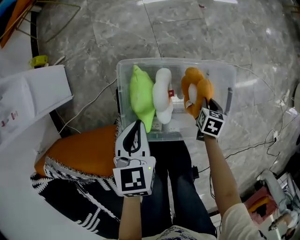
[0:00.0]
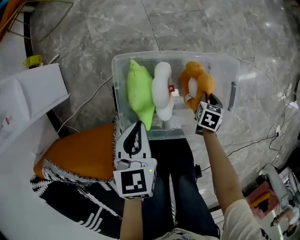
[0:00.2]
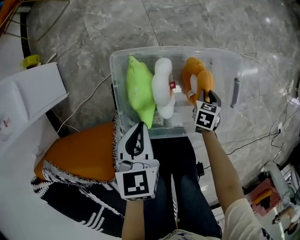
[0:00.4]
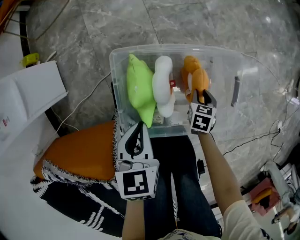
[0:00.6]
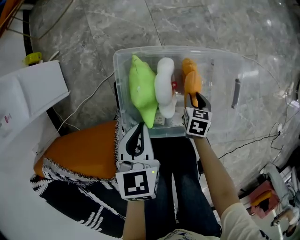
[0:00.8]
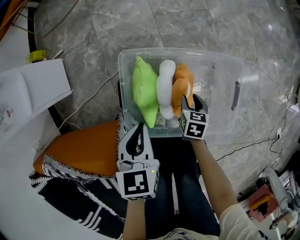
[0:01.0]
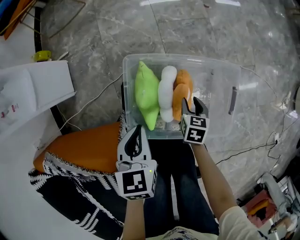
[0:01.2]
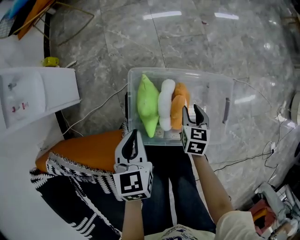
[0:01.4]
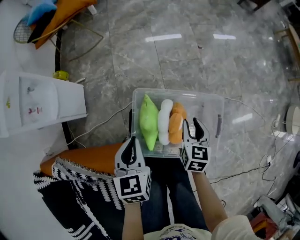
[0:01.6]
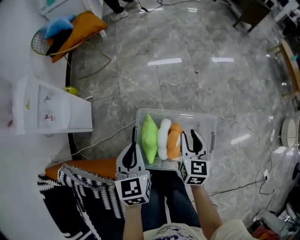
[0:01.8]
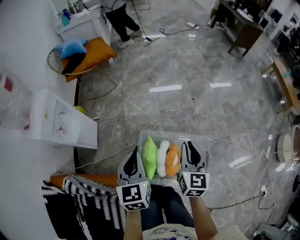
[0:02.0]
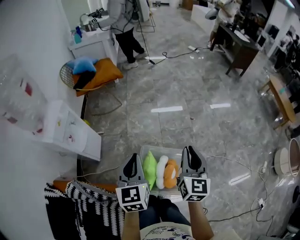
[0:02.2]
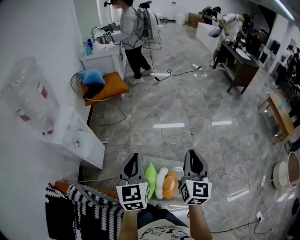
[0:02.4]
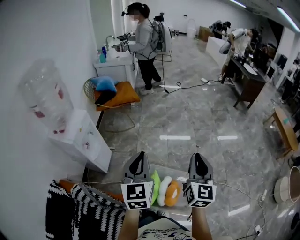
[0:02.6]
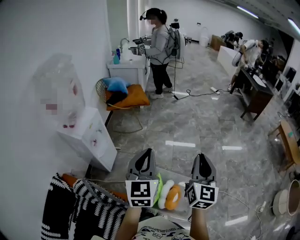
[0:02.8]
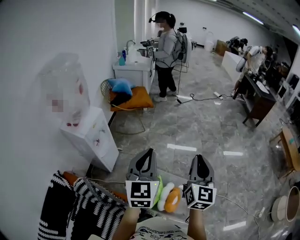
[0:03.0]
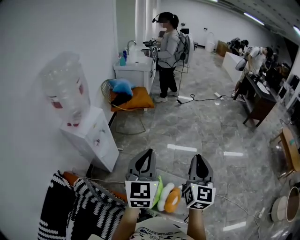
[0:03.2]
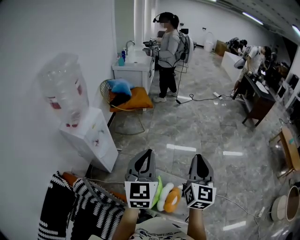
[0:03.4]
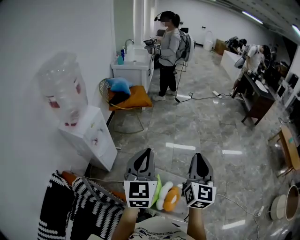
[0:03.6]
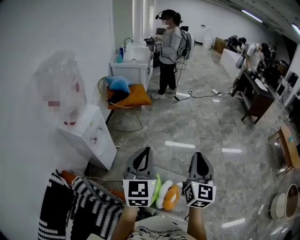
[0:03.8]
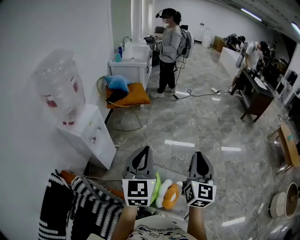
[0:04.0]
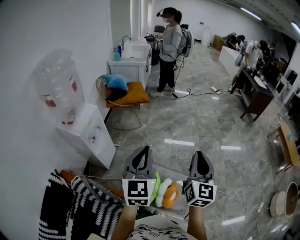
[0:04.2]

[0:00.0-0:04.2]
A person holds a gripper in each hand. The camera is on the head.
0:00.0 to 0:01.4: The left gripper ends up approximately 5 cm from where it was. The right gripper travels to the left and upward by some 15 cm, and changes its angle by about 20 degrees.
0:01.4 to 0:02.8: The two grippers go approximately 60 cm upward. The right gripper tilts its fingers about 50 degrees upward, and closes up, while the left gripper points its fingers some 40 degrees further upward.
0:02.8 to 0:04.2: The grippers stay close to where they were, moving slightly.

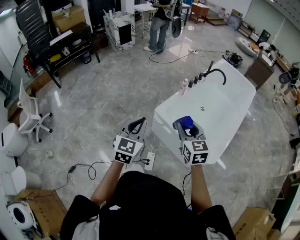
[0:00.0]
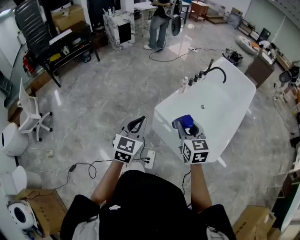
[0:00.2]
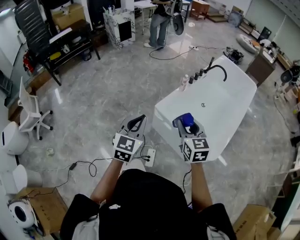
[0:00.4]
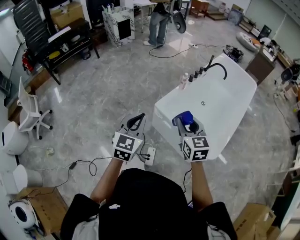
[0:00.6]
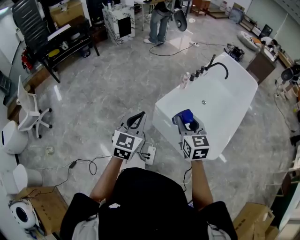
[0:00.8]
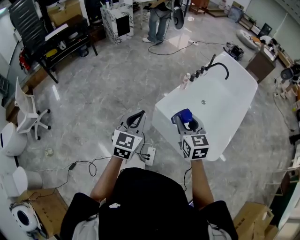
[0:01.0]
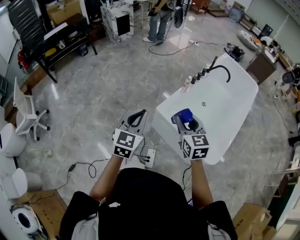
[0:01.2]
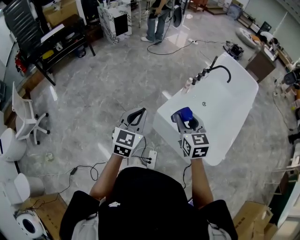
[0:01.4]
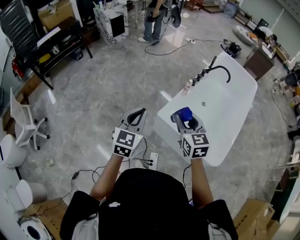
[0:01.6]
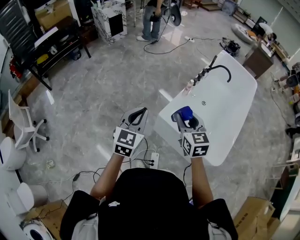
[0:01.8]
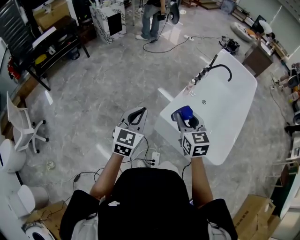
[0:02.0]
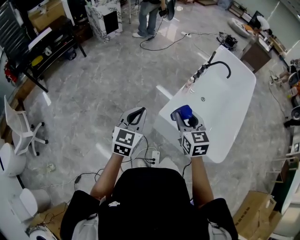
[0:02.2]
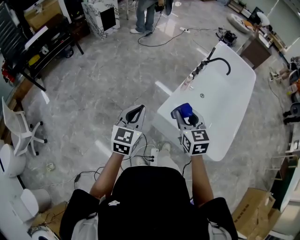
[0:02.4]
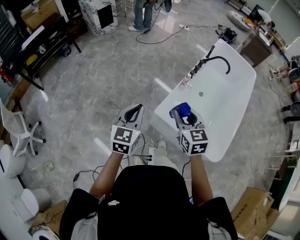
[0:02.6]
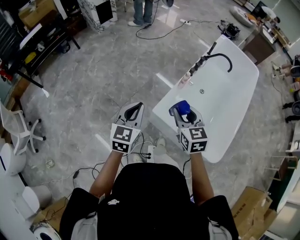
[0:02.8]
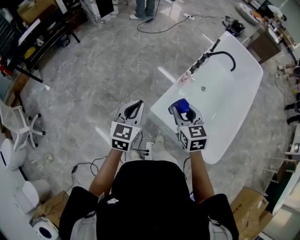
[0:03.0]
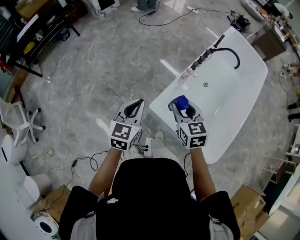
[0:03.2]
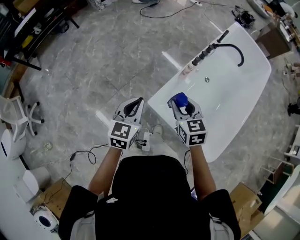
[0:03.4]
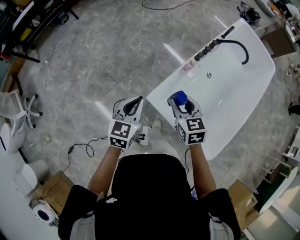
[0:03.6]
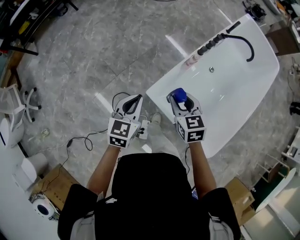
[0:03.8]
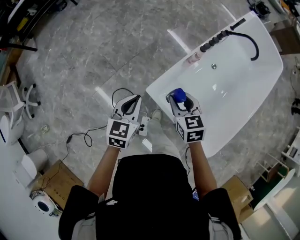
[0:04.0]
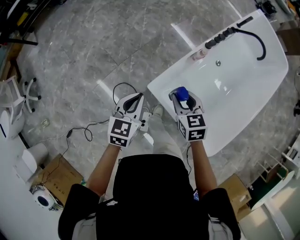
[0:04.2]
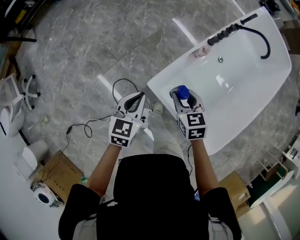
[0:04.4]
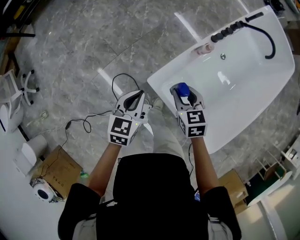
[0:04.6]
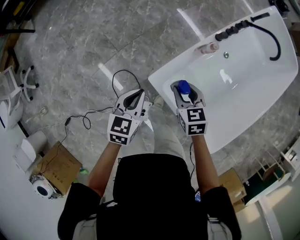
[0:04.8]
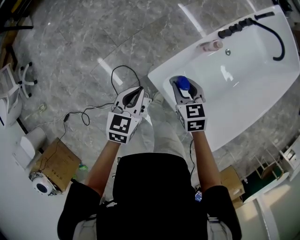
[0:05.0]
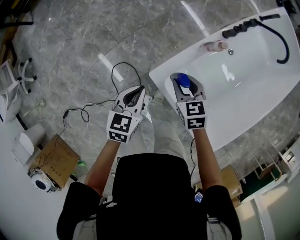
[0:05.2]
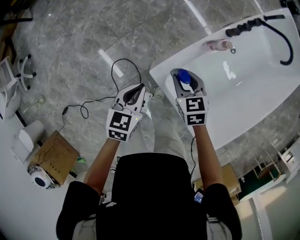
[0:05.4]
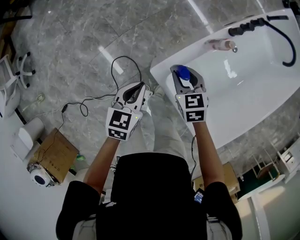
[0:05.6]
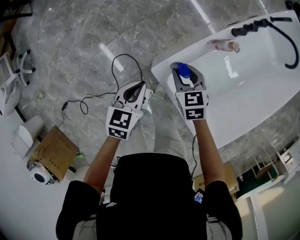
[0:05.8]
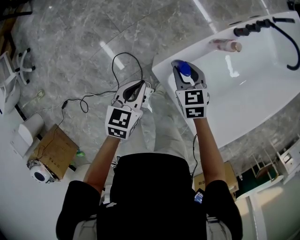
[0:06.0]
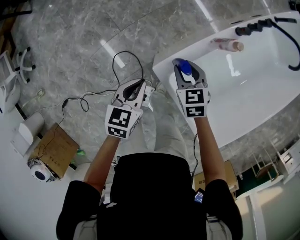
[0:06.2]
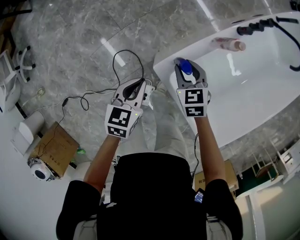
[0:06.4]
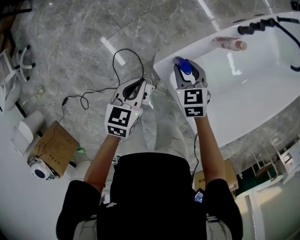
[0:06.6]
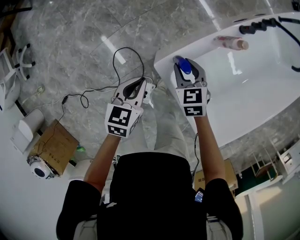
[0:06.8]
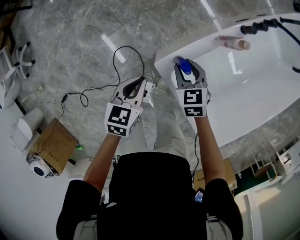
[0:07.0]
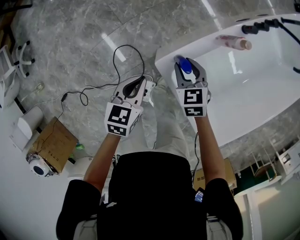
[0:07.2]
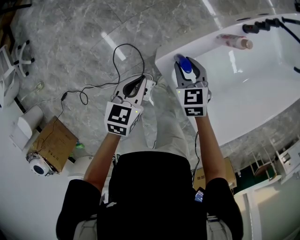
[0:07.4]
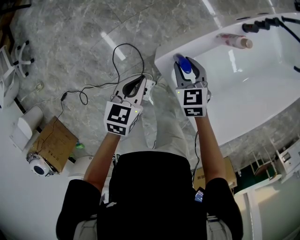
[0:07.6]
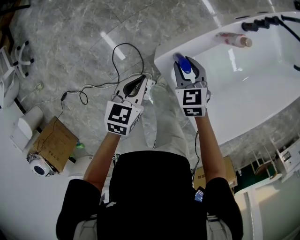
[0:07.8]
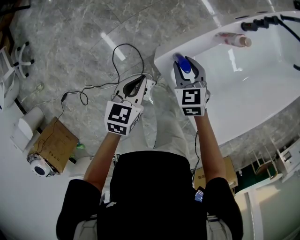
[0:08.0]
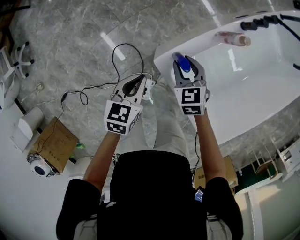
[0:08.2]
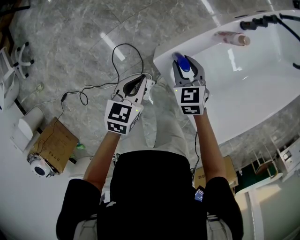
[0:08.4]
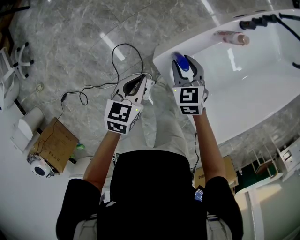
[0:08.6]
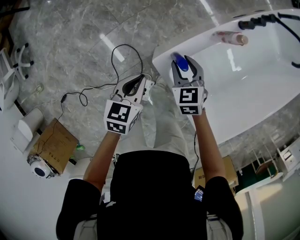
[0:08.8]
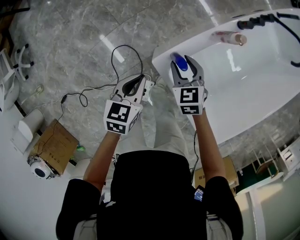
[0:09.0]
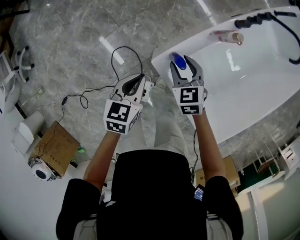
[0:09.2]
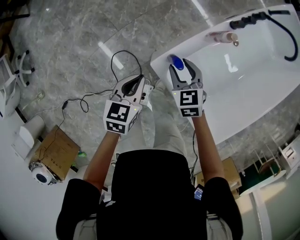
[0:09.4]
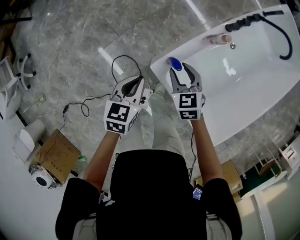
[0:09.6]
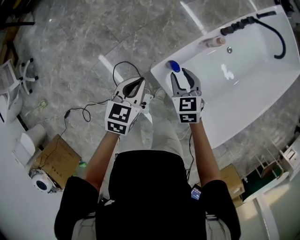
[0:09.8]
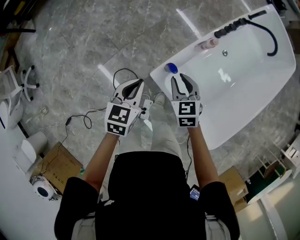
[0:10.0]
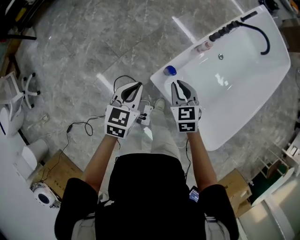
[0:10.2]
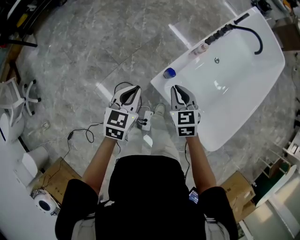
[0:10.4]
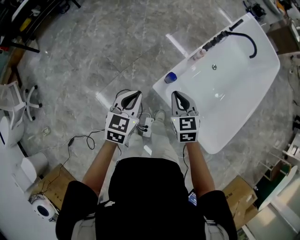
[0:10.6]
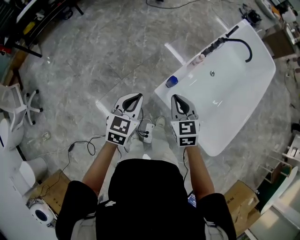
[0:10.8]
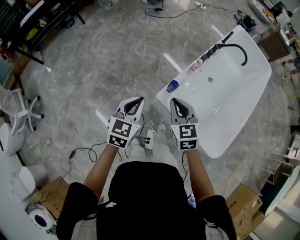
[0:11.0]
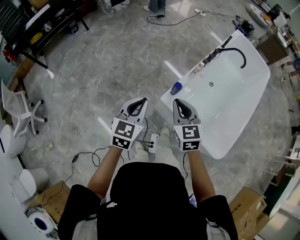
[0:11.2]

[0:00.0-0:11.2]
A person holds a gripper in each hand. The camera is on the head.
0:00.0 to 0:01.6: Both grippers travel together forward and to the left, approximately 15 cm.
0:01.6 to 0:03.2: The grippers both shift forward and downward by roughly 20 cm.
0:03.2 to 0:04.8: The two grippers go about 20 cm downward. The left gripper rotates roughly 20 degrees.
0:04.8 to 0:06.4: The left gripper shifts approximately 10 cm downward. The right gripper is displaced downward and forward by approximately 10 cm.
0:06.4 to 0:08.0: There are only small adjustments of the grippers.
0:08.0 to 0:09.6: Both grippers travel together upward, roughly 5 cm.
0:09.6 to 0:11.2: Both grippers move upward and backward, roughly 30 cm. The right gripper changes its angle by about 20 degrees, and closes its fingers. The left gripper changes its angle by approximately 30 degrees.

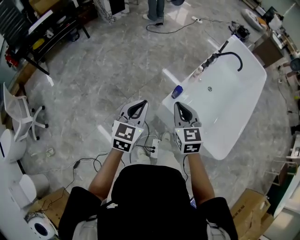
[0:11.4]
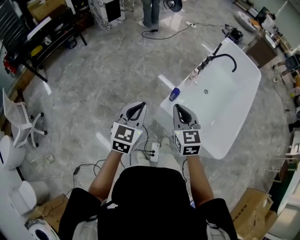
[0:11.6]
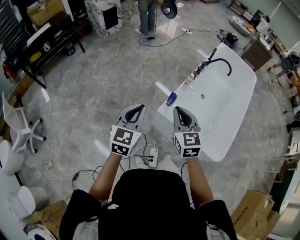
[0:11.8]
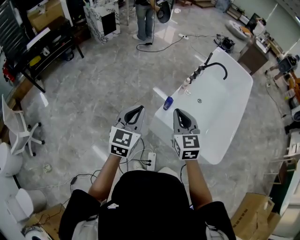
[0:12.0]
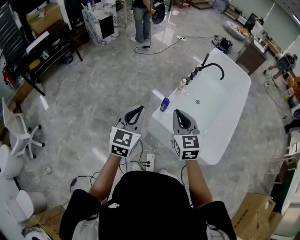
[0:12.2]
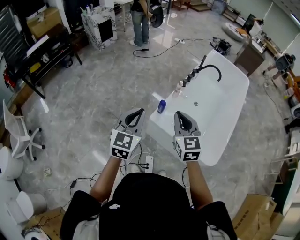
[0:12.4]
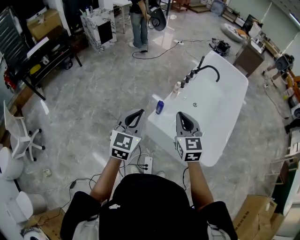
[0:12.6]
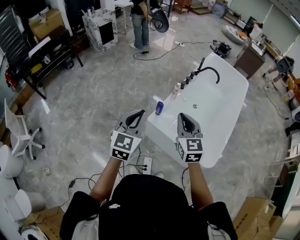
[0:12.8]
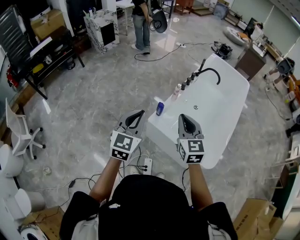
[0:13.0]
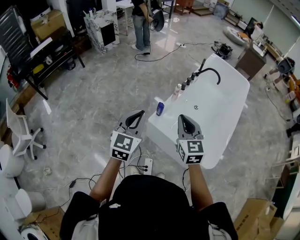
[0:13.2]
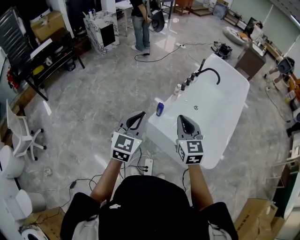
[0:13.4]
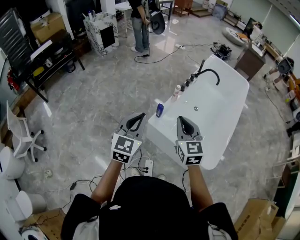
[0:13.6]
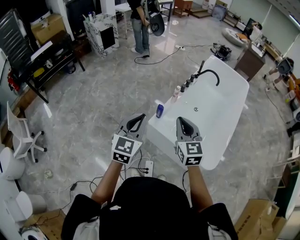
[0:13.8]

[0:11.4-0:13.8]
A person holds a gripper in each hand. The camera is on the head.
0:11.4 to 0:12.6: The left gripper is displaced upward and to the right by roughly 15 cm. The right gripper is displaced to the right and upward by approximately 15 cm.
0:12.6 to 0:13.8: The grippers make only small movements.

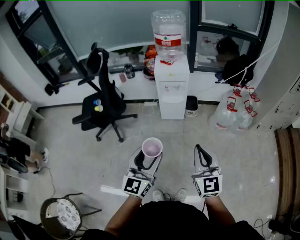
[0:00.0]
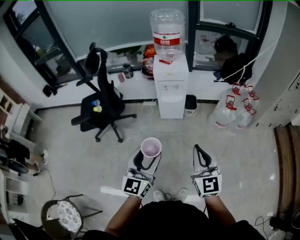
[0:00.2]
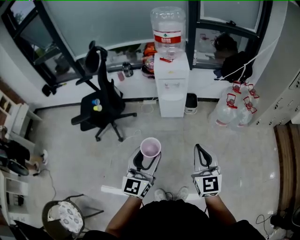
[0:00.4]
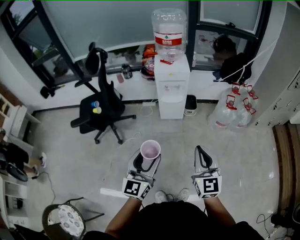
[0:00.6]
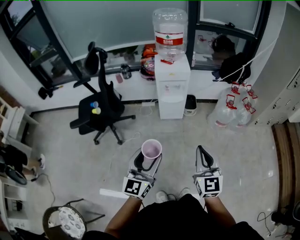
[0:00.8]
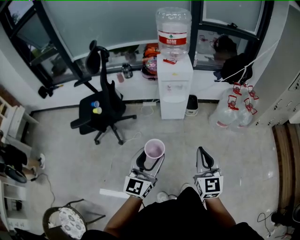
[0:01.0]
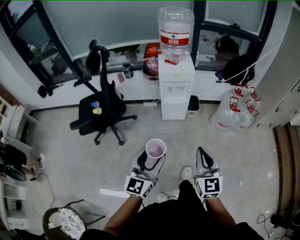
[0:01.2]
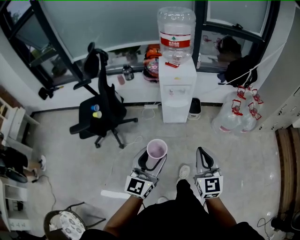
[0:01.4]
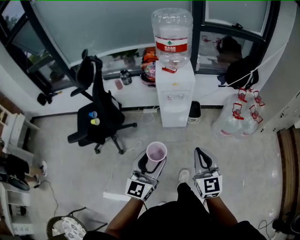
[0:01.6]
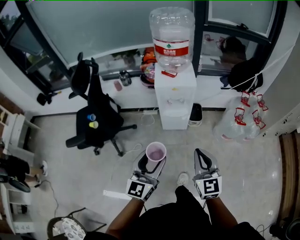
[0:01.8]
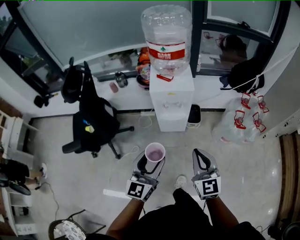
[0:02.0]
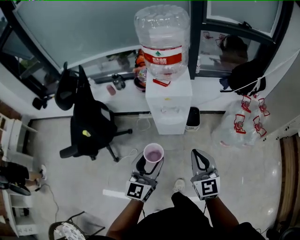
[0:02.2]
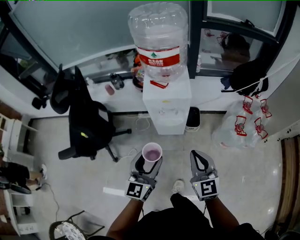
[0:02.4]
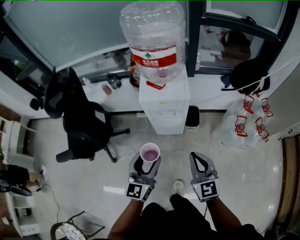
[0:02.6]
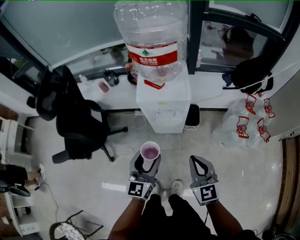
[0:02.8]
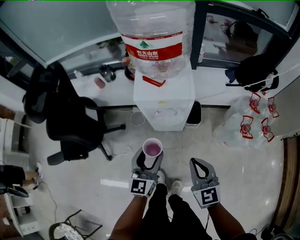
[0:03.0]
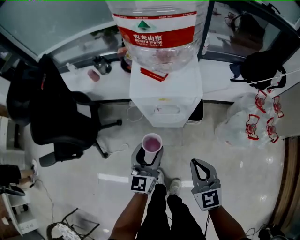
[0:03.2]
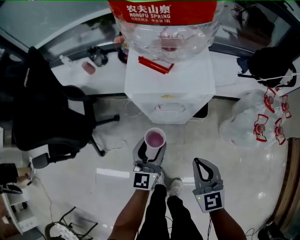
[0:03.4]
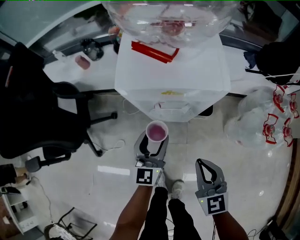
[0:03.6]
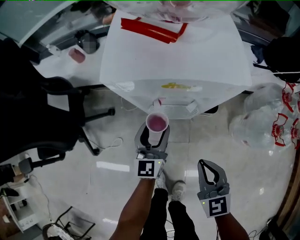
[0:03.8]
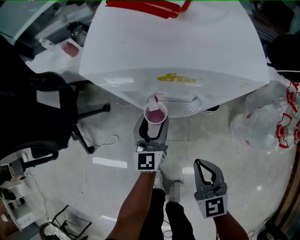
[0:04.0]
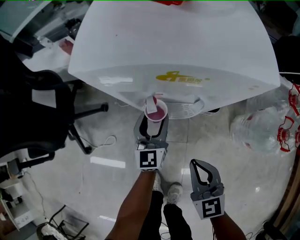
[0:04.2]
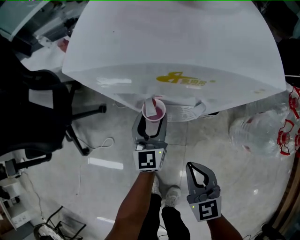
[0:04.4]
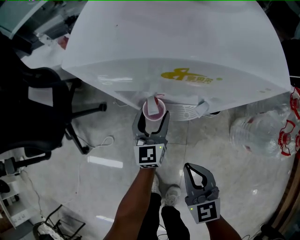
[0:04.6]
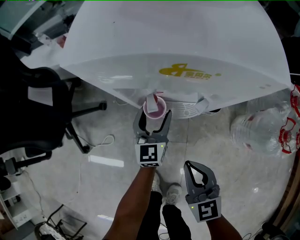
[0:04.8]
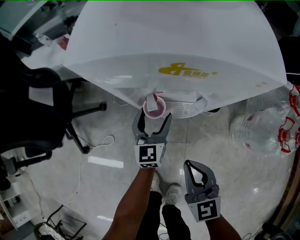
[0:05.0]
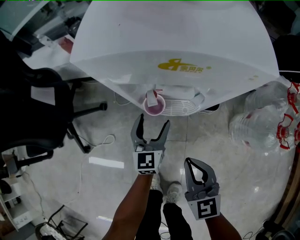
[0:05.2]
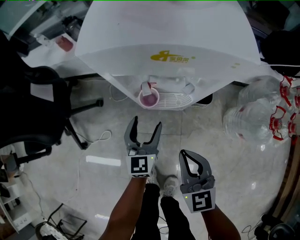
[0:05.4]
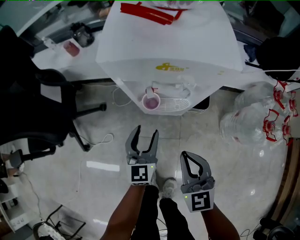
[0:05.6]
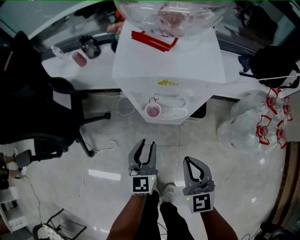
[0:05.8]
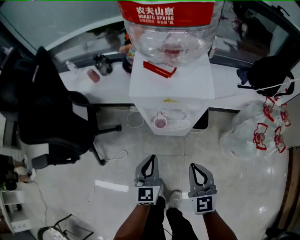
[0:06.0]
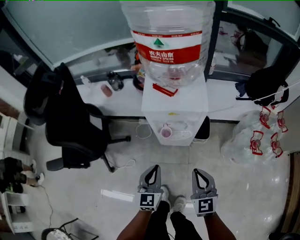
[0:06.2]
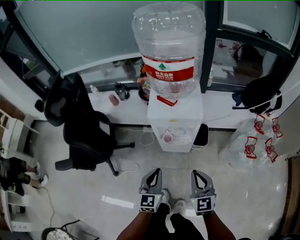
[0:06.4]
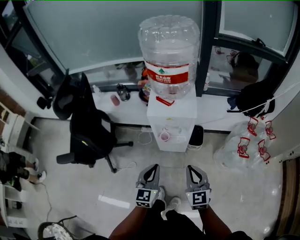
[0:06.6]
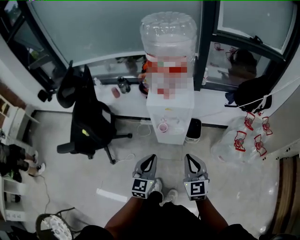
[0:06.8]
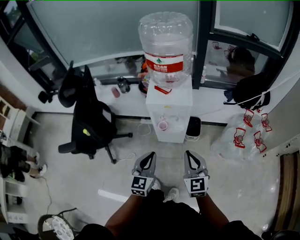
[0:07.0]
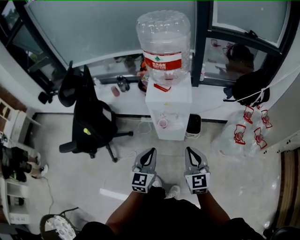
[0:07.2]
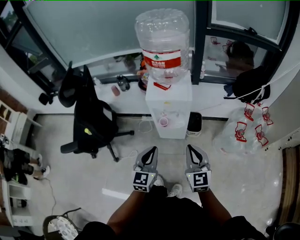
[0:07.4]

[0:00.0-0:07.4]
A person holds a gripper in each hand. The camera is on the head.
0:00.0 to 0:01.4: Both grippers move forward and to the left, about 10 cm.
0:01.4 to 0:03.0: Both grippers move forward, some 35 cm.
0:03.0 to 0:04.4: The left gripper shifts about 40 cm downward and forward; the right gripper heads downward, covering roughly 30 cm.
0:04.4 to 0:06.0: The left gripper heads backward and upward, covering about 25 cm, and closes up, while the right gripper travels upward and backward by some 15 cm.
0:06.0 to 0:07.4: The grippers both shift upward and backward by approximately 25 cm.
